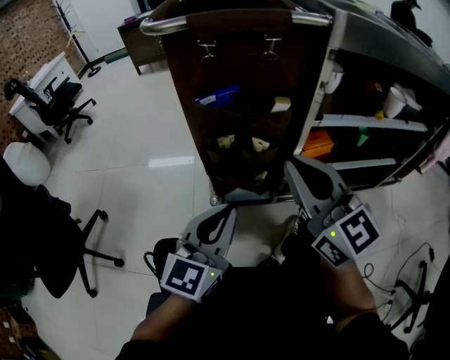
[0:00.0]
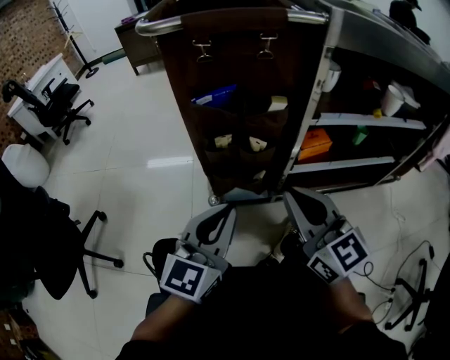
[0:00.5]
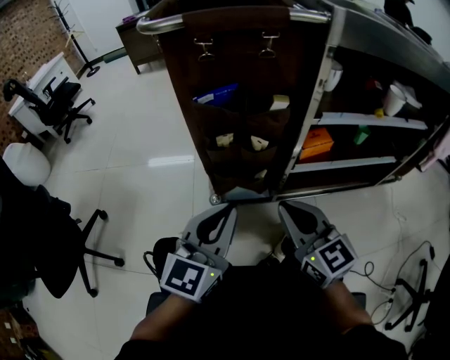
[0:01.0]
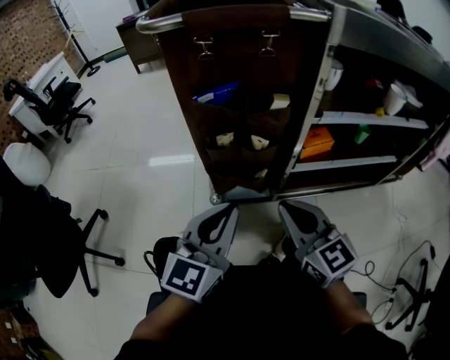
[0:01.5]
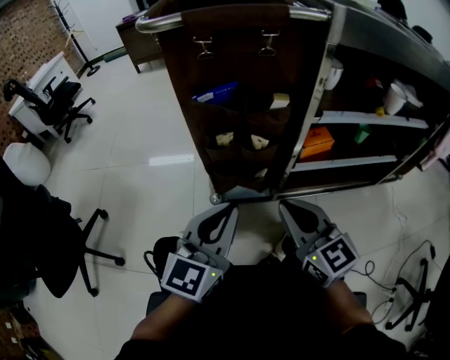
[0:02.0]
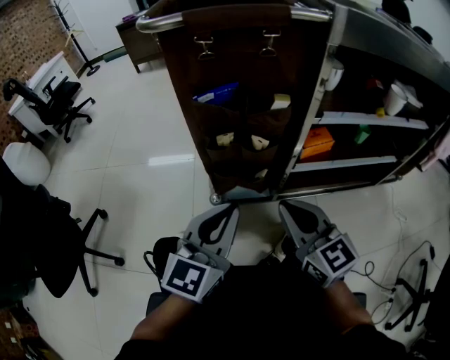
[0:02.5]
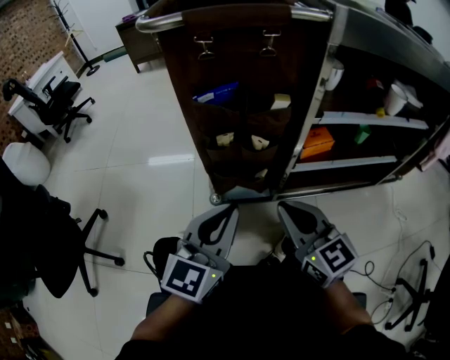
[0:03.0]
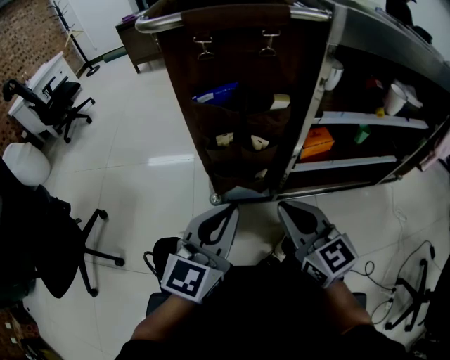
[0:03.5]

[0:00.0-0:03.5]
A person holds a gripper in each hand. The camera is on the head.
0:00.0 to 0:02.0: The right gripper is displaced downward by some 10 cm.
0:02.0 to 0:03.5: Both grippers stay about where they are.

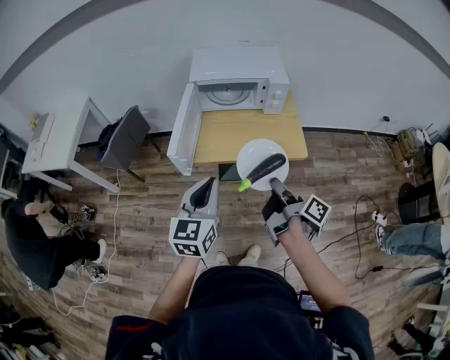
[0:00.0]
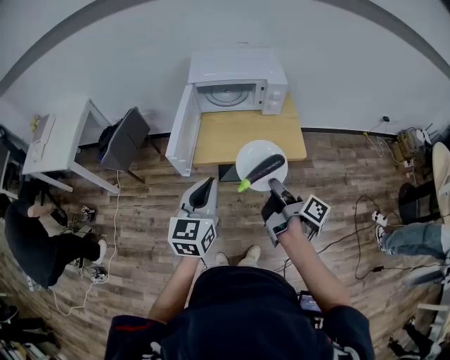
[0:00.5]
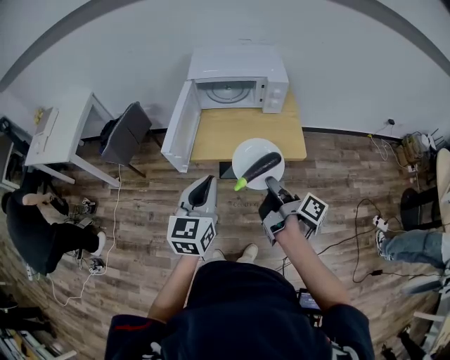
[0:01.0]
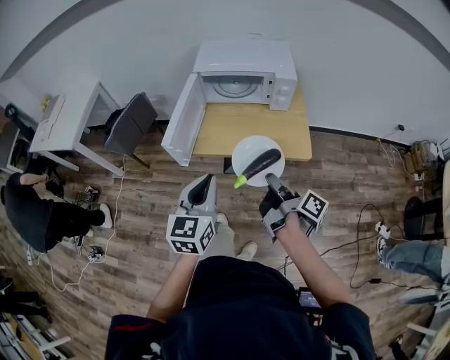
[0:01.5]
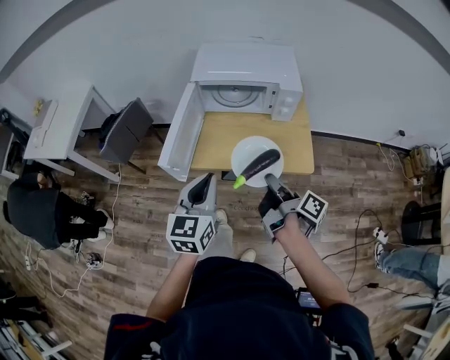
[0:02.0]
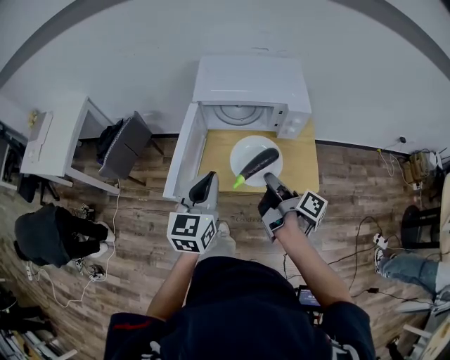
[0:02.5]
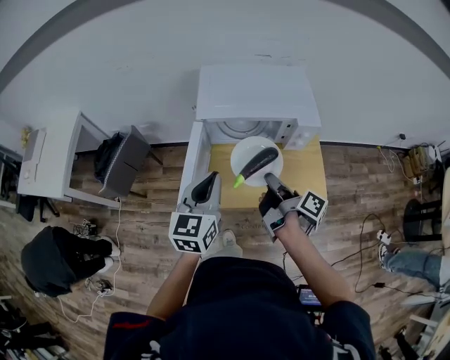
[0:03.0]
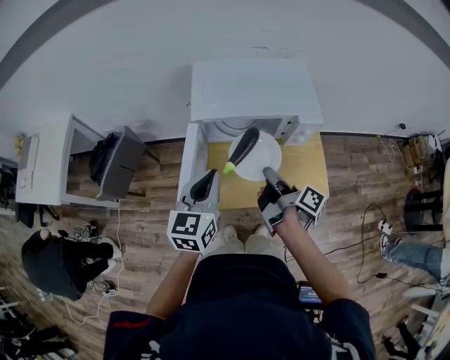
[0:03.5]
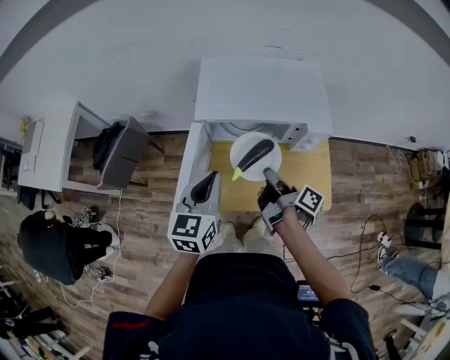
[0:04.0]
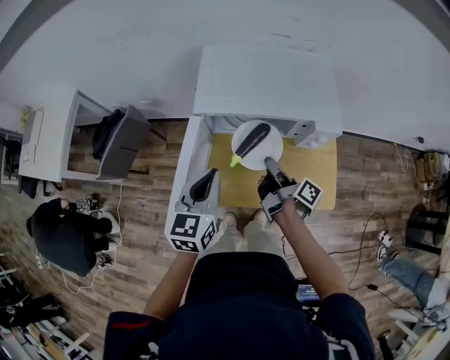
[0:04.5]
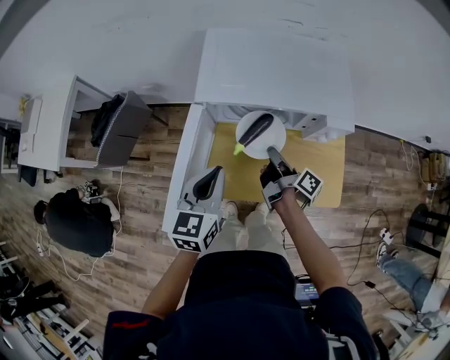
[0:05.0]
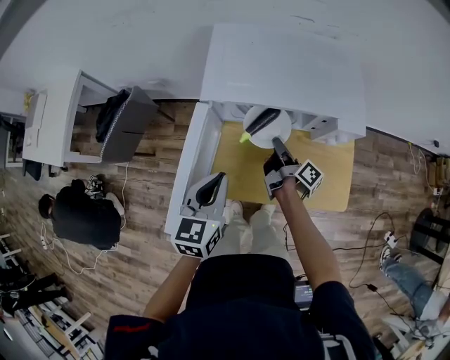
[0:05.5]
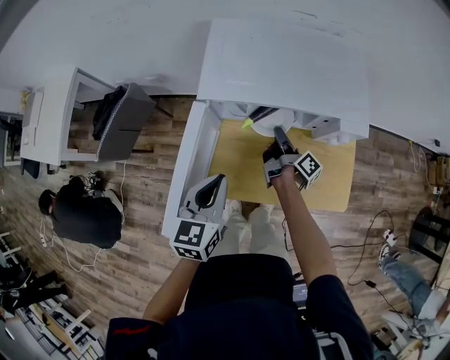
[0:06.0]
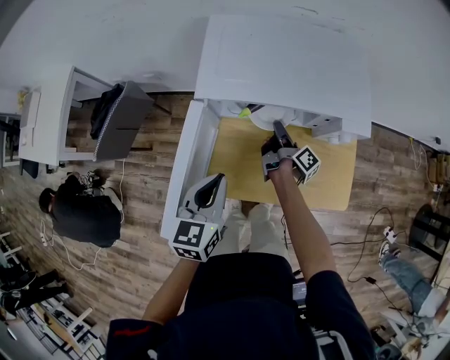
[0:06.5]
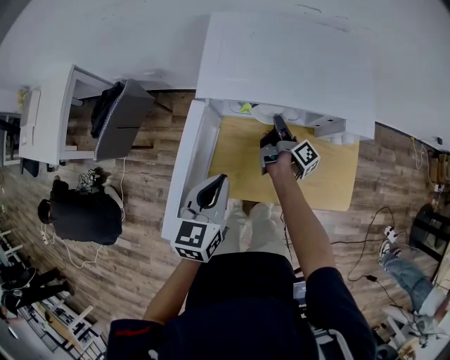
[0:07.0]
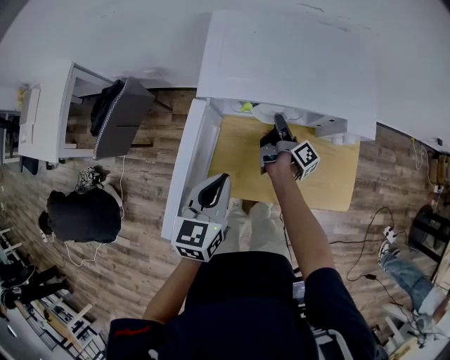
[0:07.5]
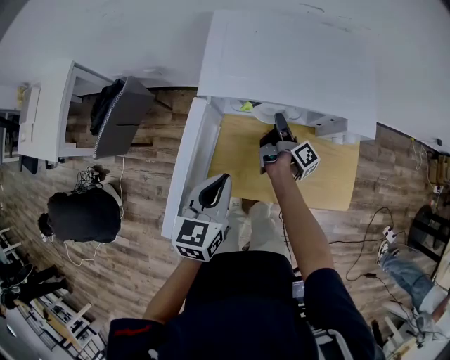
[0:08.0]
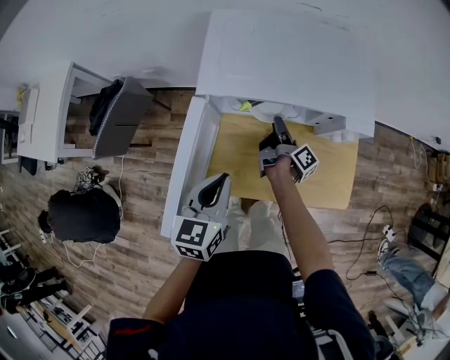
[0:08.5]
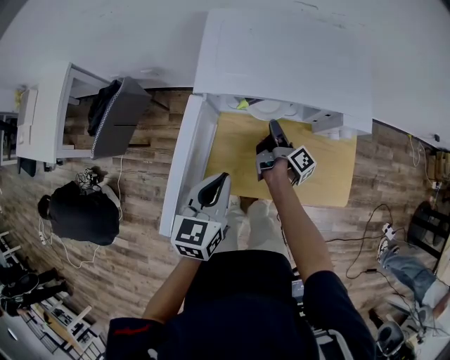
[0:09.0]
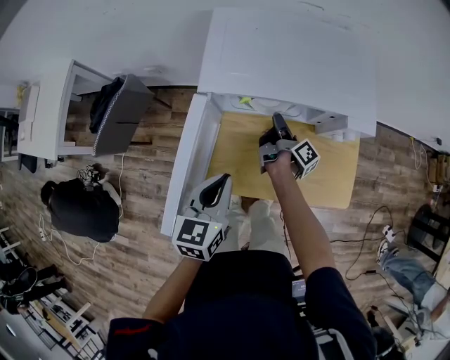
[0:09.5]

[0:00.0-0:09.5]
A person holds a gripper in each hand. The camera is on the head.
0:00.0 to 0:02.0: The left gripper changes place by some 10 cm.
0:02.0 to 0:04.0: The left gripper shifts by some 25 cm.
0:04.0 to 0:05.5: The left gripper is displaced downward by some 5 cm.

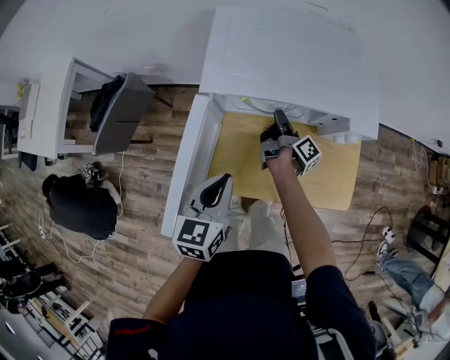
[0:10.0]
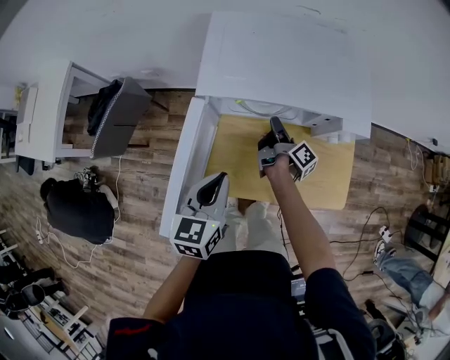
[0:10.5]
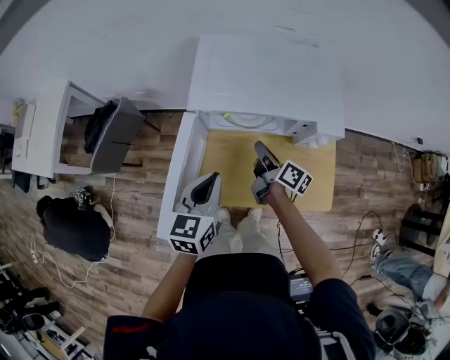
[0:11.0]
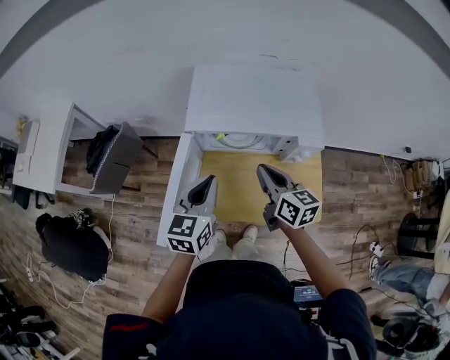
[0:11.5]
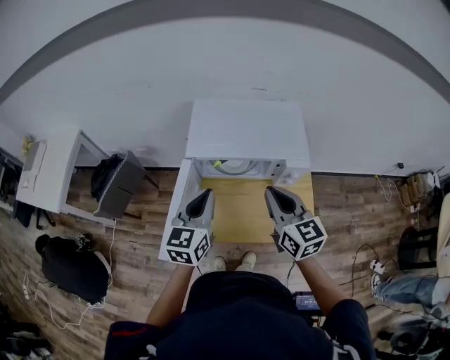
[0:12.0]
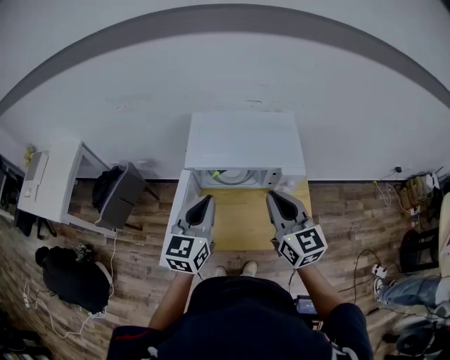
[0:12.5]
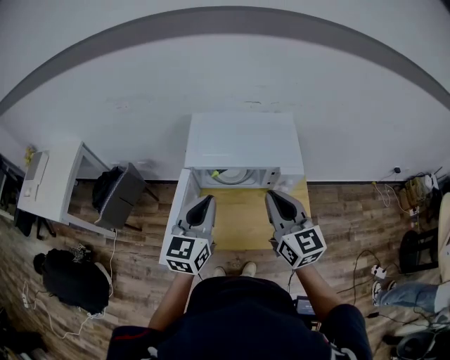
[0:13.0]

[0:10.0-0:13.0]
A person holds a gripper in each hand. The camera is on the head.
0:10.0 to 0:11.5: The left gripper moves upward, approximately 10 cm.
0:11.5 to 0:13.0: The left gripper heads upward, covering roughly 10 cm.

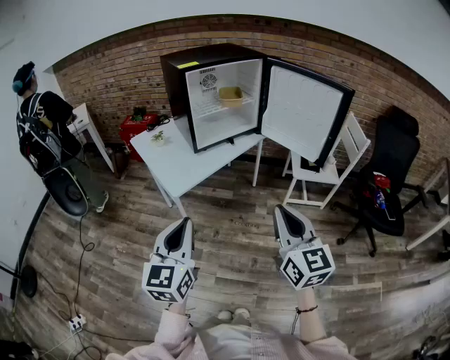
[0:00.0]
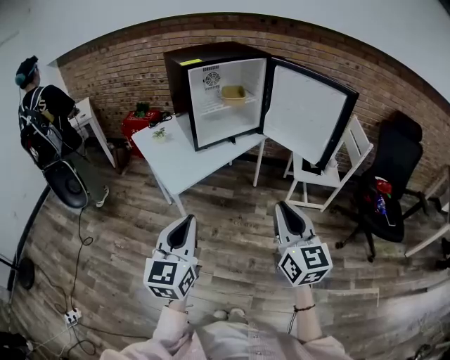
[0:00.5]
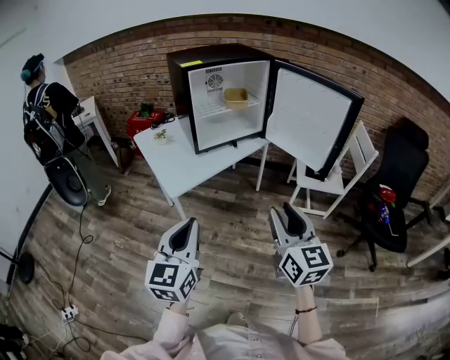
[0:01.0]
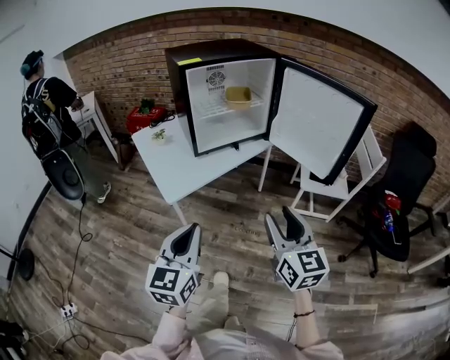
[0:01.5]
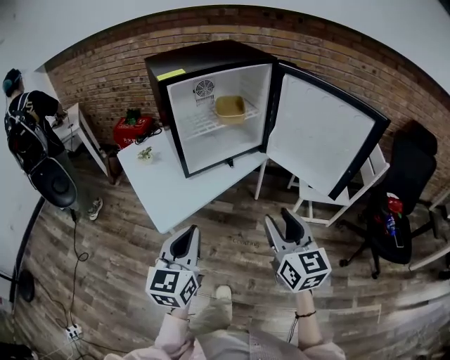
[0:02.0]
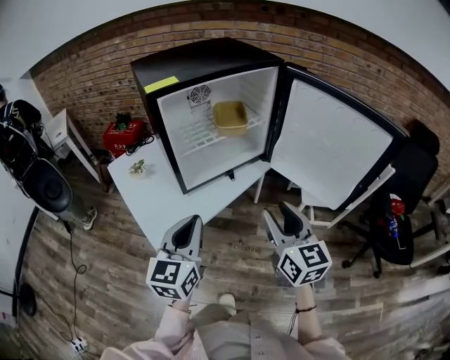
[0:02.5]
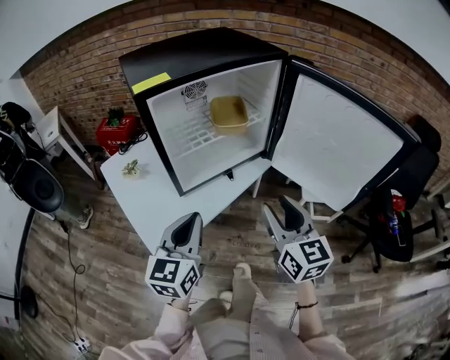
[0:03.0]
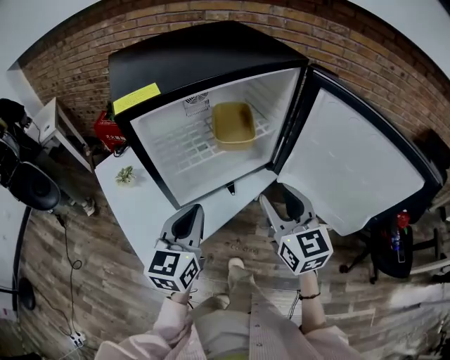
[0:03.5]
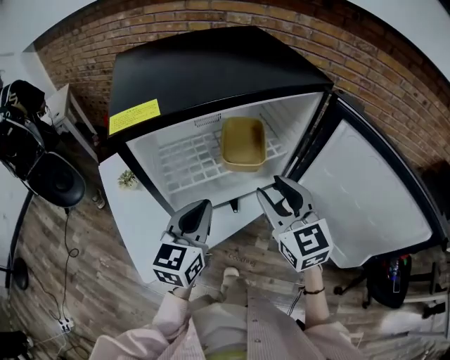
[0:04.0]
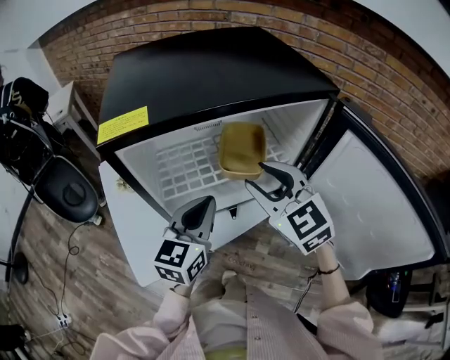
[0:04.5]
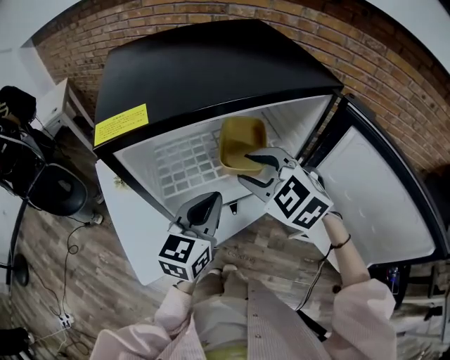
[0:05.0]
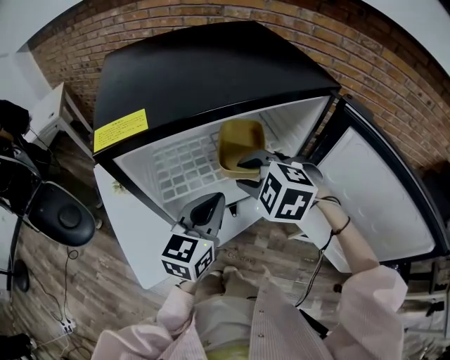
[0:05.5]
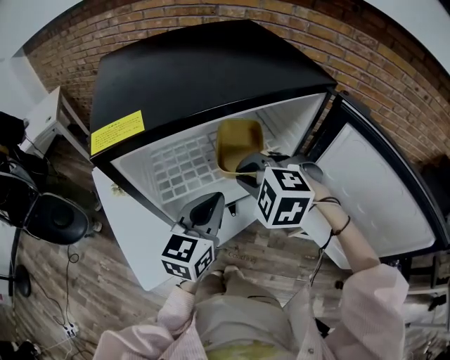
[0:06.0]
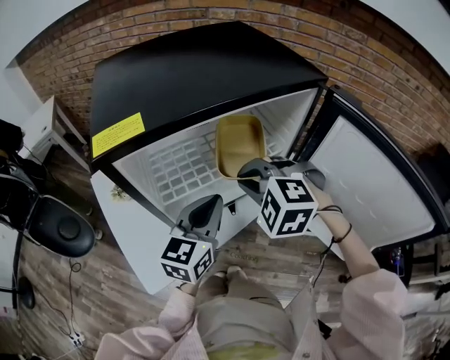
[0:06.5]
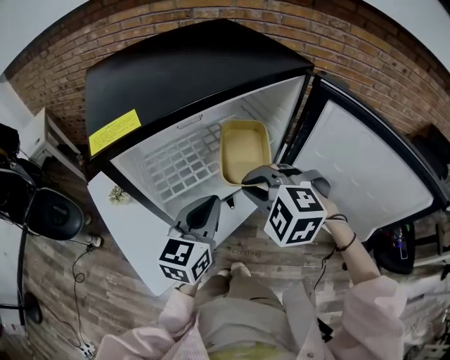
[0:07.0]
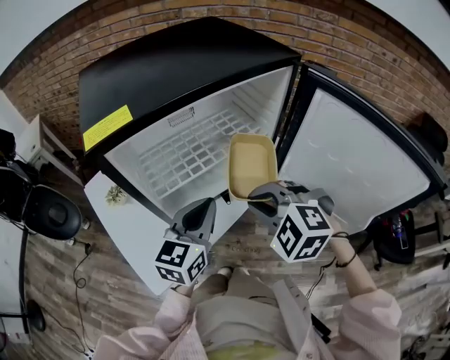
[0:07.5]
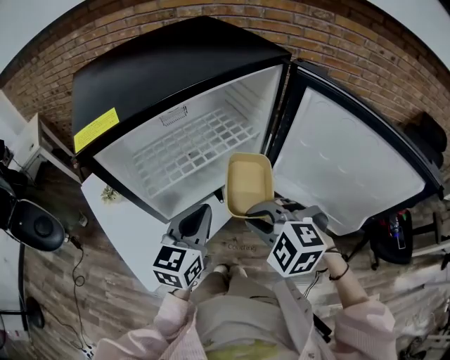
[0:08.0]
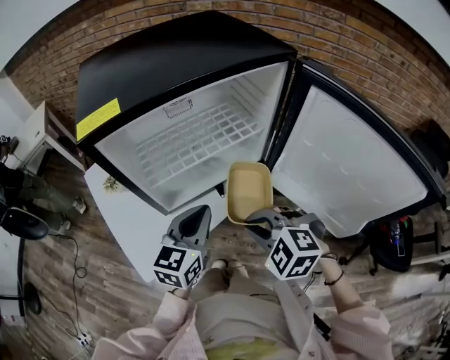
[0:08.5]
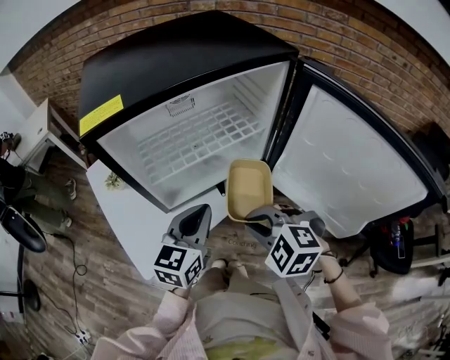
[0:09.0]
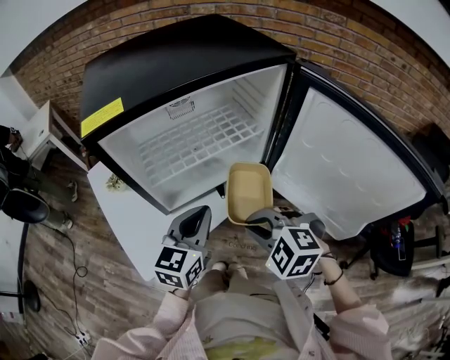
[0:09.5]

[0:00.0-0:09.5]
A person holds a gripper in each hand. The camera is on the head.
0:00.0 to 0:02.0: The two grippers go some 20 cm forward. The right gripper opens its fingers.
0:02.0 to 0:04.0: Both grippers travel together forward, about 35 cm. The right gripper changes its angle by some 20 degrees.
0:04.0 to 0:05.5: The right gripper travels forward and to the left by roughly 10 cm, and tilts its fingers about 40 degrees downward, while the left gripper shifts by approximately 5 cm.
0:05.5 to 0:07.5: The right gripper goes roughly 10 cm backward, and closes its fingers.
0:07.5 to 0:09.5: The right gripper shifts some 5 cm backward.

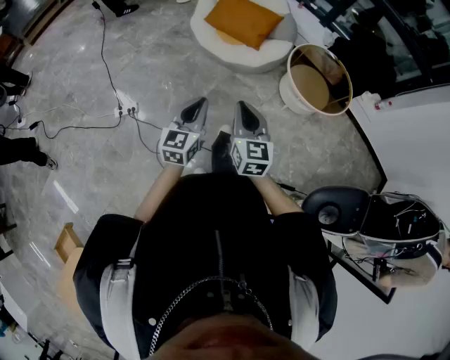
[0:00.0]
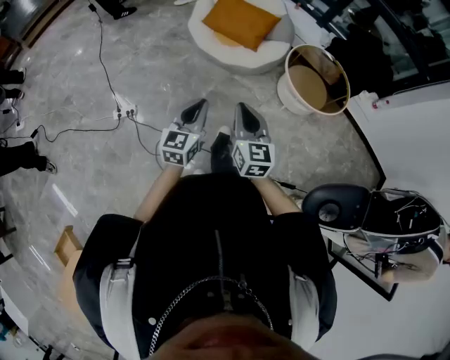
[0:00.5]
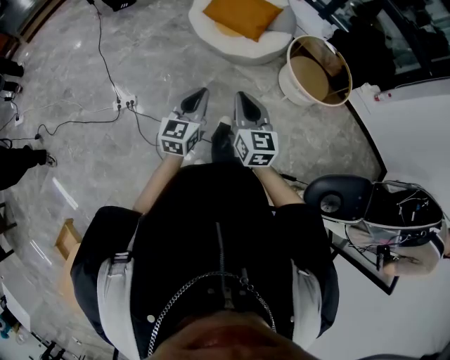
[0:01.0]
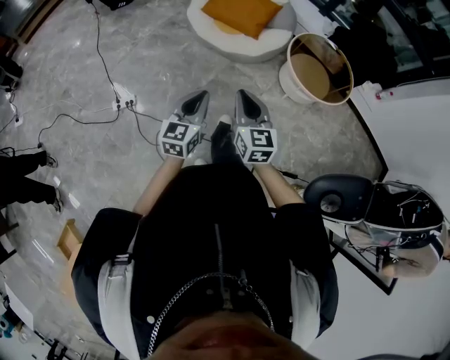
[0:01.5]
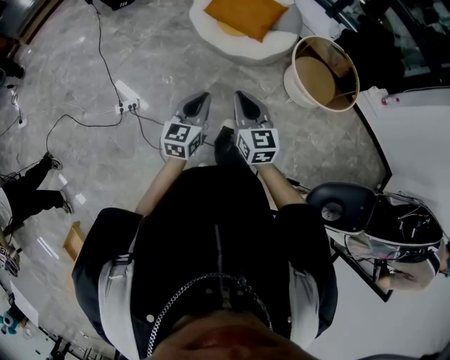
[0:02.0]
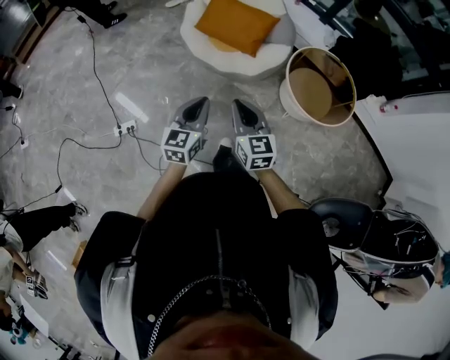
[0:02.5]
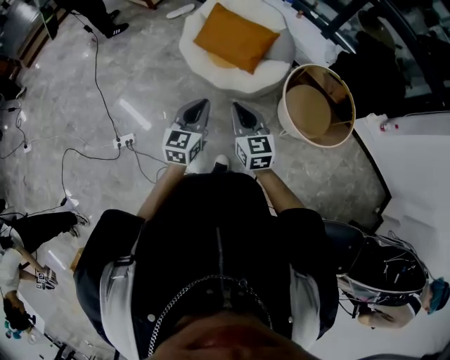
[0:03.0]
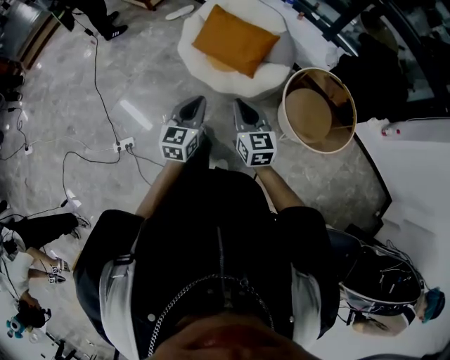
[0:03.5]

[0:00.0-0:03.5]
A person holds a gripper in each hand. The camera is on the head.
0:00.0 to 0:02.0: The right gripper shifts by some 5 cm.
0:02.0 to 0:03.5: Both grippers move forward, some 30 cm.
